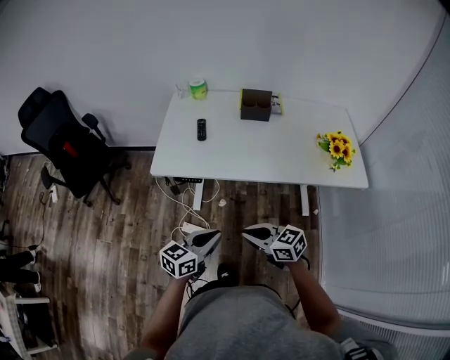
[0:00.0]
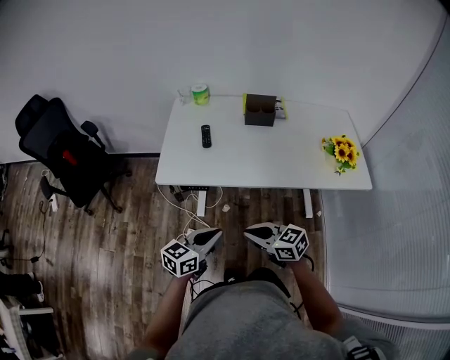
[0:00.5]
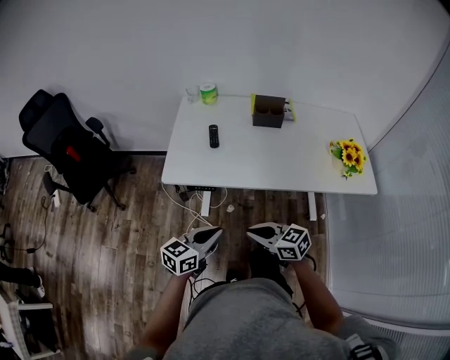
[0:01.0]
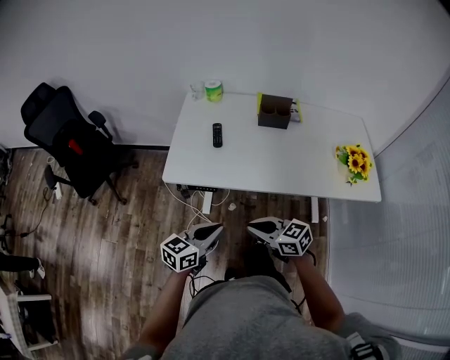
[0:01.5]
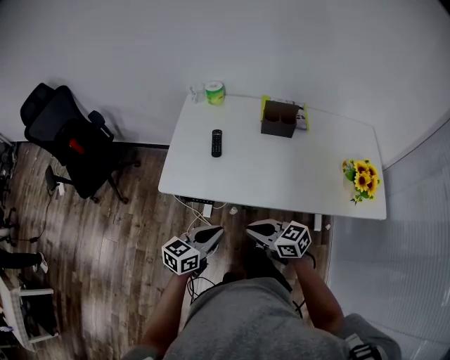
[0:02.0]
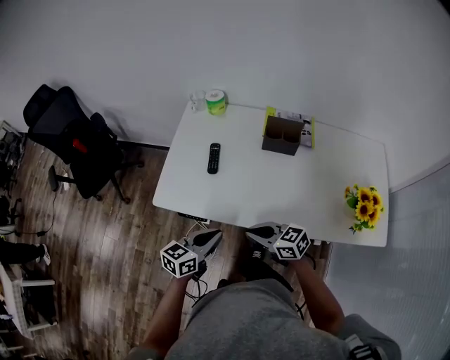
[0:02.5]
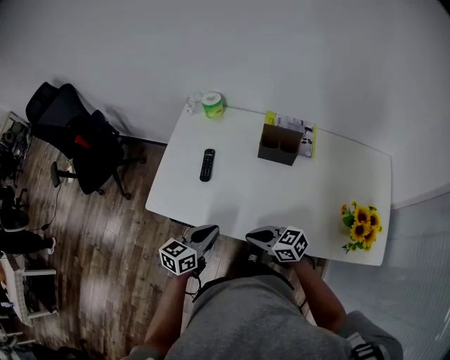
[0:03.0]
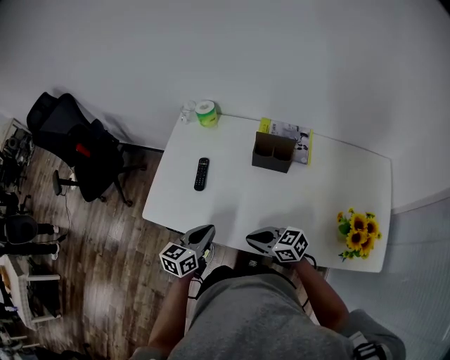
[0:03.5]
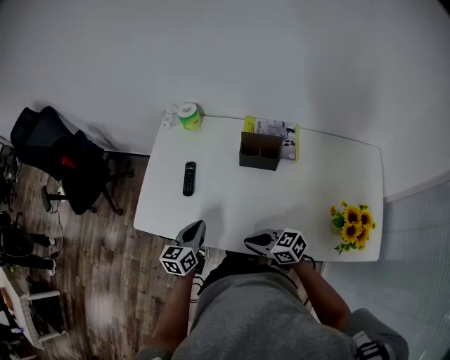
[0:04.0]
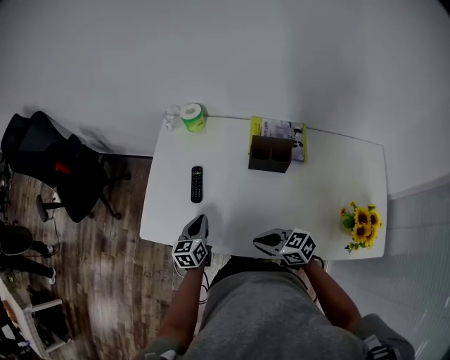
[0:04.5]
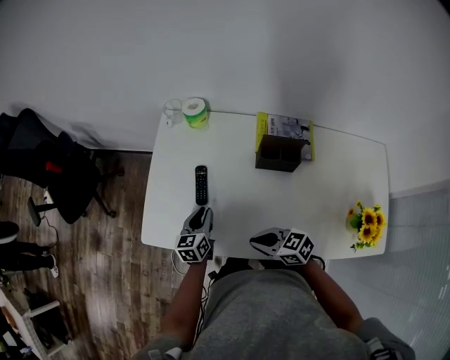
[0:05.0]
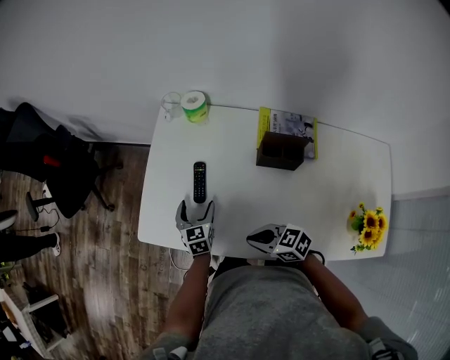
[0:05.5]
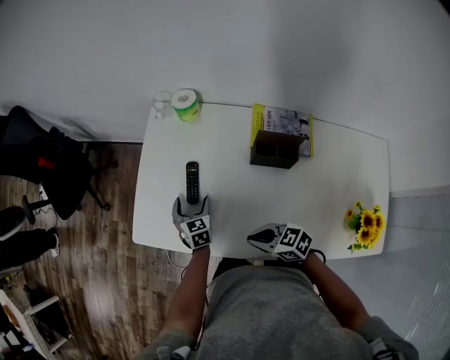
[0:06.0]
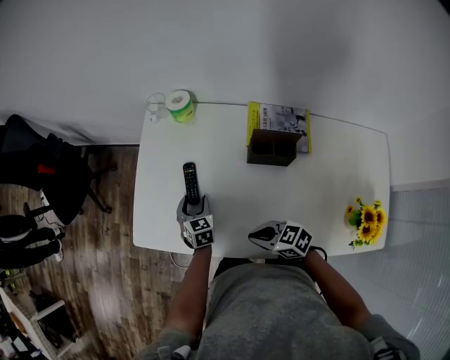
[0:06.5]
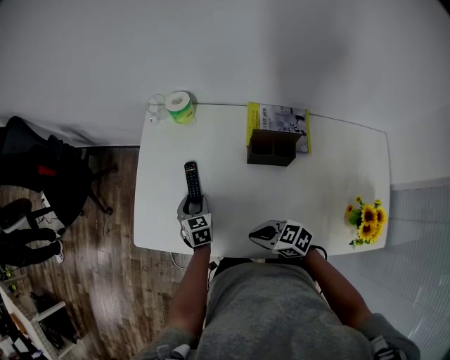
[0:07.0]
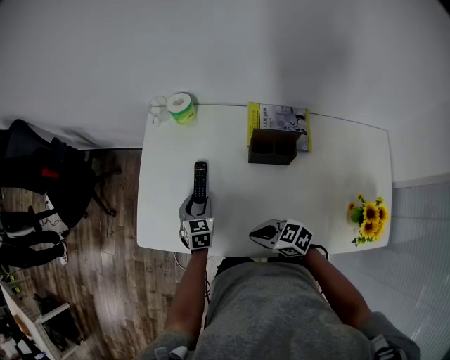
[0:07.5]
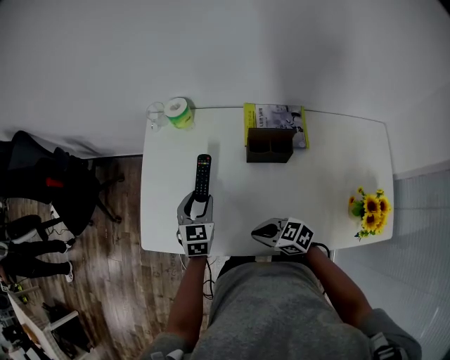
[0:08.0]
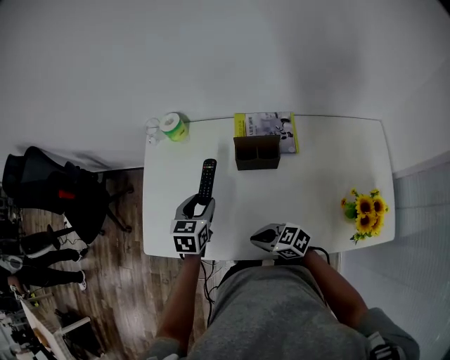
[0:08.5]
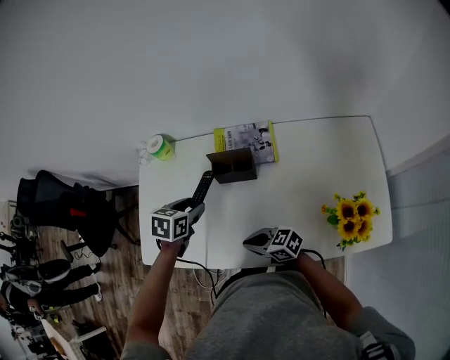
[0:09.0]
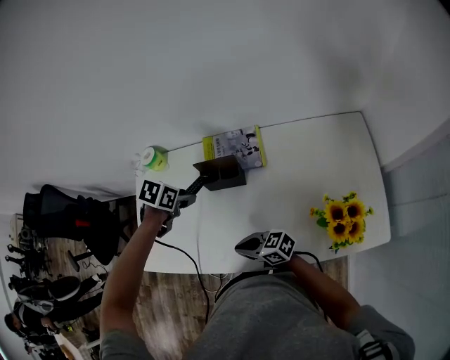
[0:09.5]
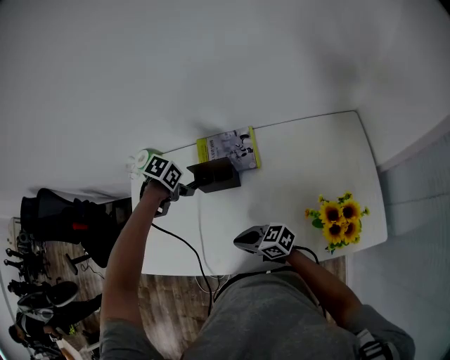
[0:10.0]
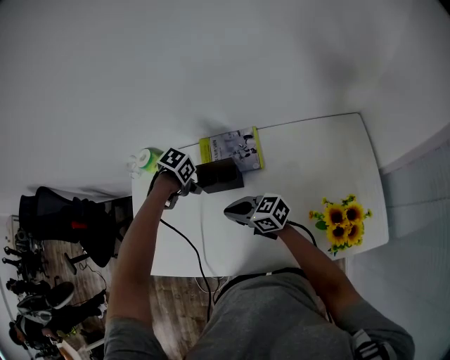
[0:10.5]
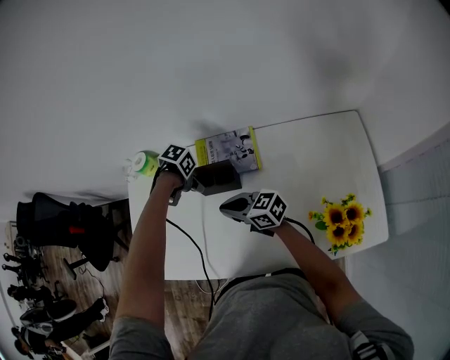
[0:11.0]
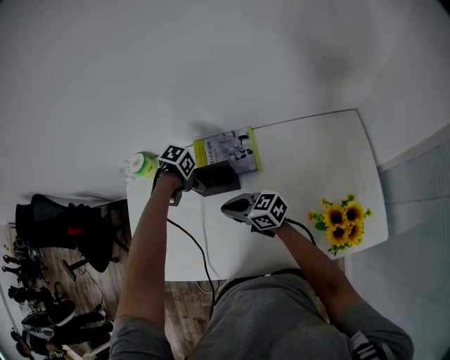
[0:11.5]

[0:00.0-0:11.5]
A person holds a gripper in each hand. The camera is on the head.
0:00.0 to 0:02.0: Both grippers travel together forward, roughly 15 cm.
0:02.0 to 0:04.0: The left gripper goes some 25 cm forward and to the right, and turns by approximately 30 degrees. The right gripper is displaced to the right and forward by some 20 cm.
0:04.0 to 0:06.0: The left gripper shifts approximately 20 cm forward and downward, turns by some 30 degrees, and opens its fingers. The right gripper shifts approximately 5 cm forward.
0:06.0 to 0:07.5: The left gripper closes its fingers.
0:07.5 to 0:09.5: The left gripper changes place by approximately 25 cm, and swivels approximately 40 degrees, while the right gripper ends up some 10 cm from where it was, and rotates about 20 degrees.
0:09.5 to 0:11.5: The right gripper changes place by roughly 15 cm, while the left gripper travels downward by some 10 cm, and turns by about 30 degrees.

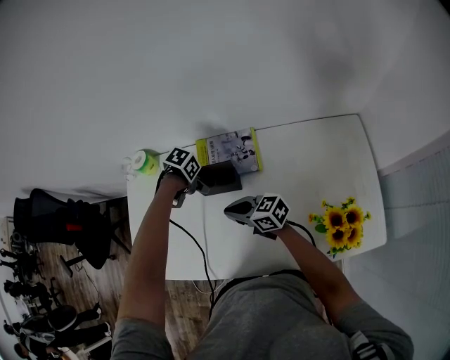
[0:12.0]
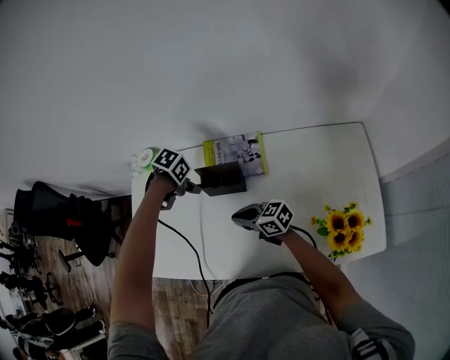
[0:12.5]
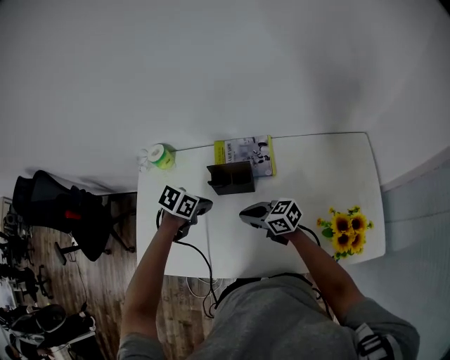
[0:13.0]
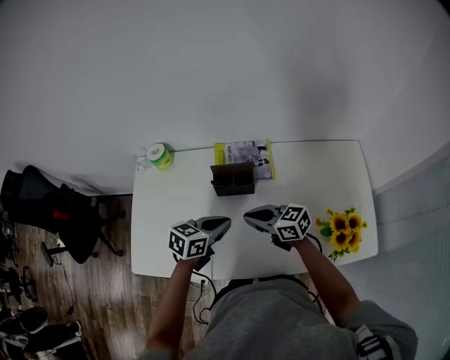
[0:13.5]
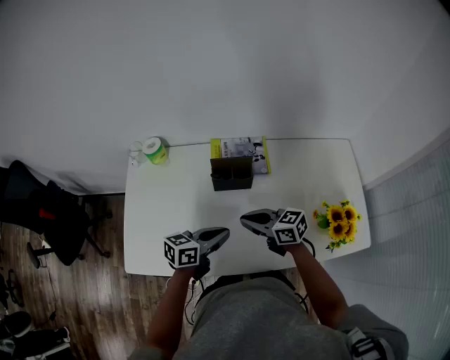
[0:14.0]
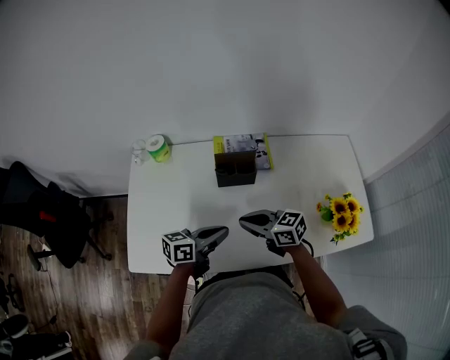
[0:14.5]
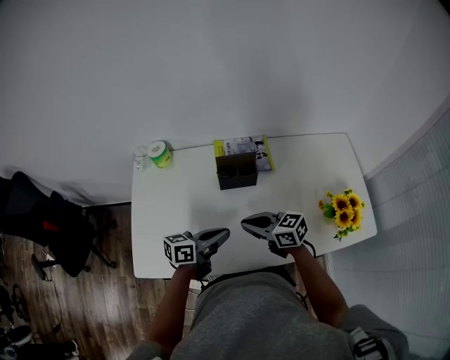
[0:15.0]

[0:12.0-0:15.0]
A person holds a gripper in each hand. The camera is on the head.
0:12.0 to 0:13.5: The left gripper shifts by some 20 cm, angles its fingers upward, by roughly 40 degrees, and closes up. Meanwhile the right gripper moves some 5 cm.
0:13.5 to 0:15.0: The left gripper shifts by approximately 10 cm, and changes its angle by approximately 30 degrees, while the right gripper shifts by approximately 10 cm.

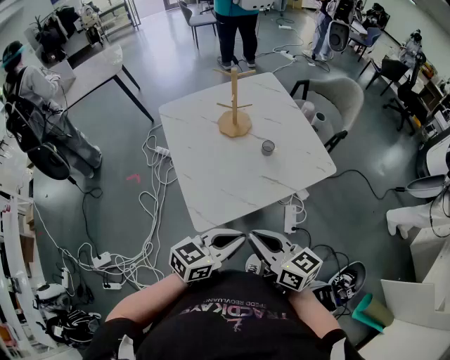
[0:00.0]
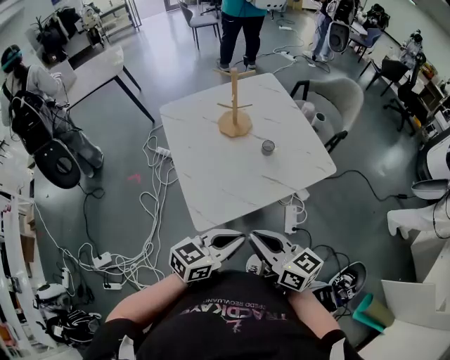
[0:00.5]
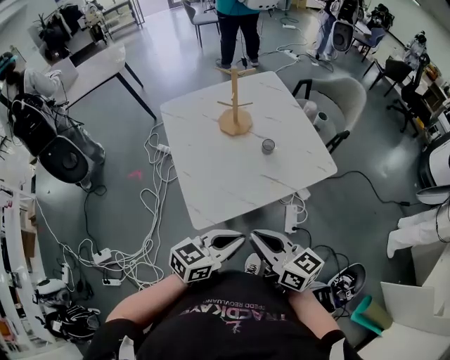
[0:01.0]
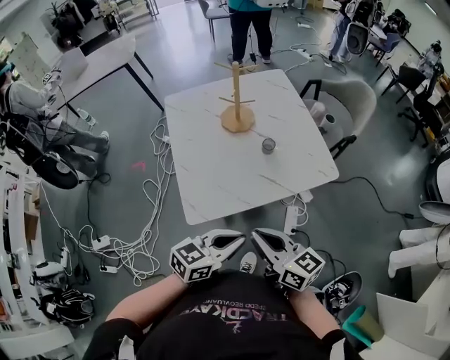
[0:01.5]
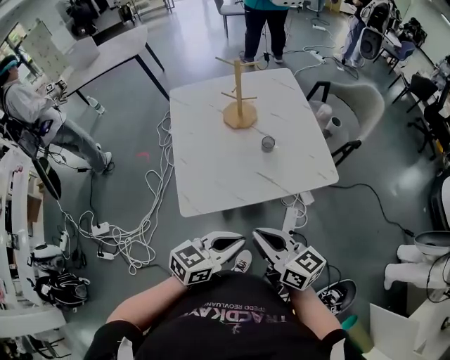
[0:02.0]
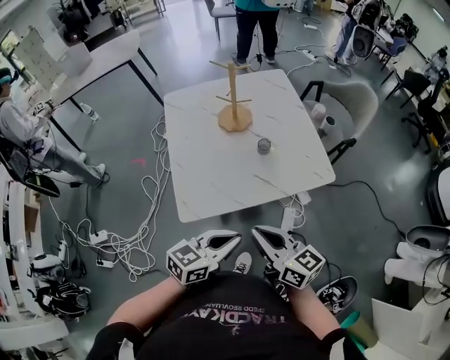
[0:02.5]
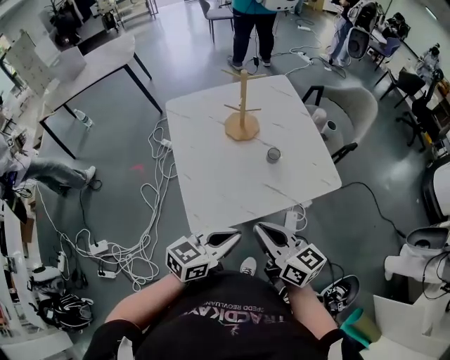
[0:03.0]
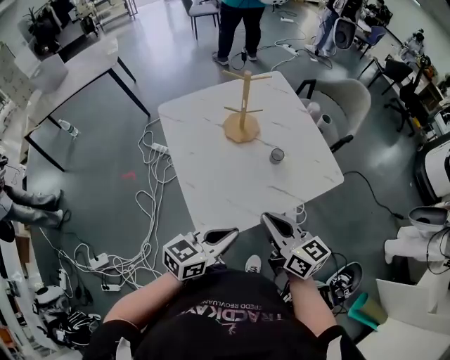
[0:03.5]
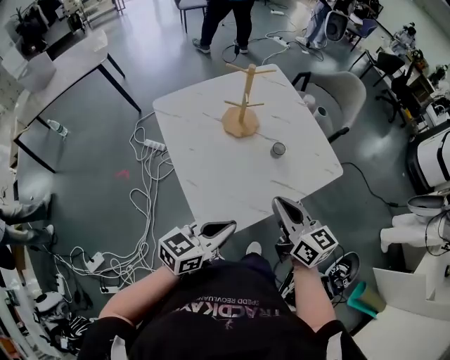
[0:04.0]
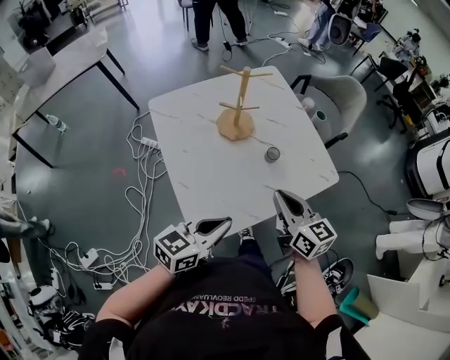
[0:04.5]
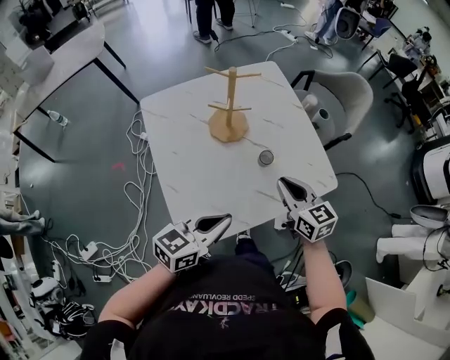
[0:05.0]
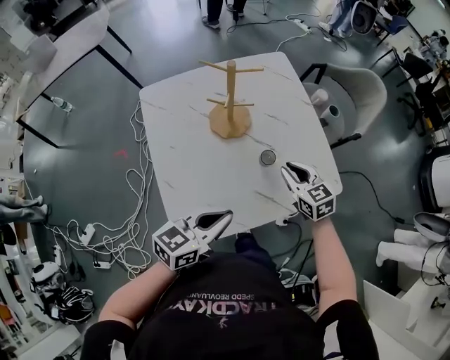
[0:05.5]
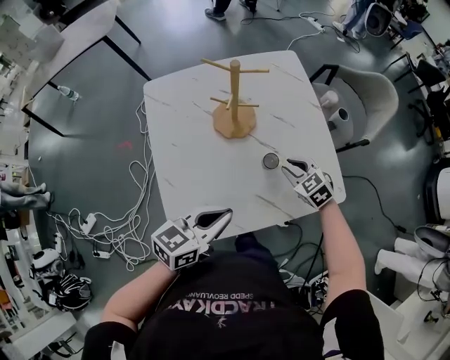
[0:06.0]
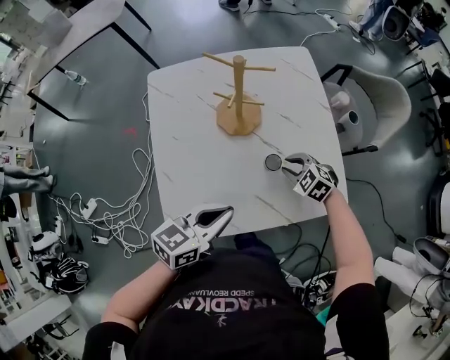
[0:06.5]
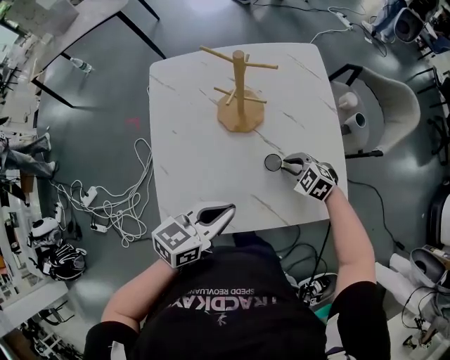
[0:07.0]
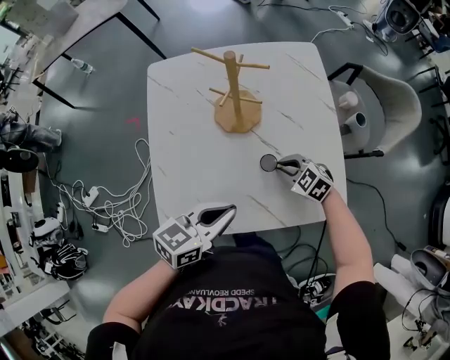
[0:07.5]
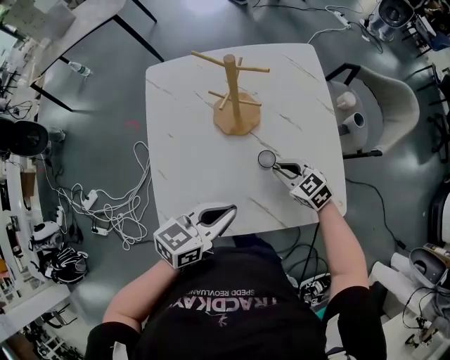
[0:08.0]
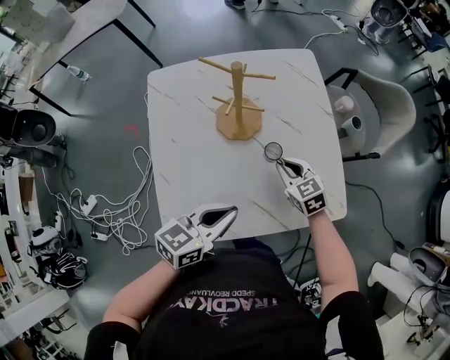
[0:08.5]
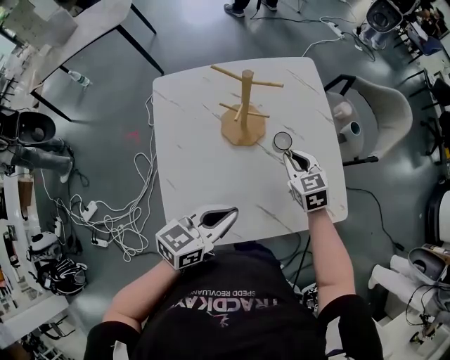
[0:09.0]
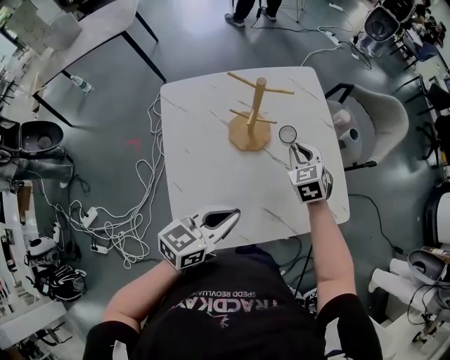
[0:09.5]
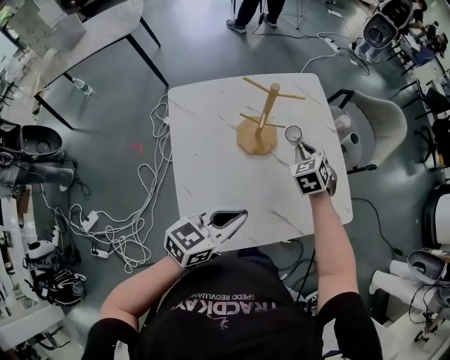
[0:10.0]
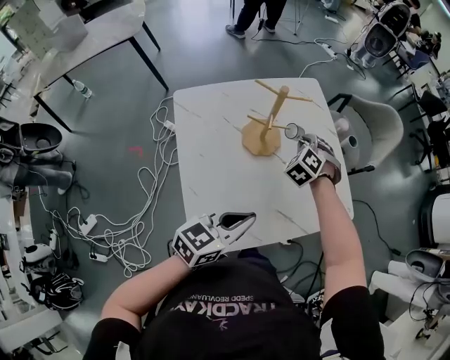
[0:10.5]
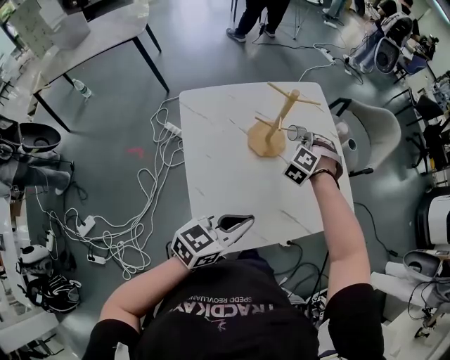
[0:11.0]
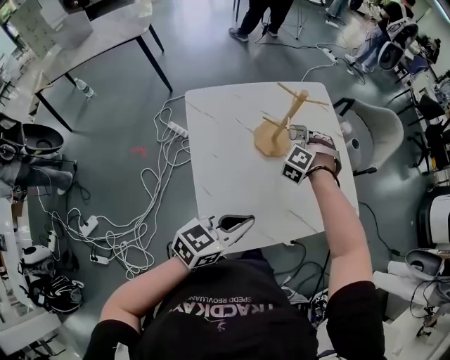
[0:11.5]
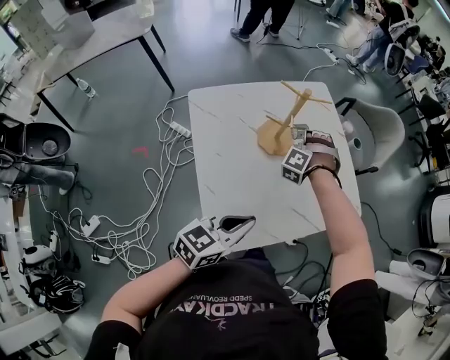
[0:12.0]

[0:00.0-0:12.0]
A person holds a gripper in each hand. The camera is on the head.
0:00.0 to 0:02.0: Both grippers move to the right, approximately 10 cm.
0:02.0 to 0:04.0: The right gripper is displaced forward and to the left by some 15 cm, and swivels approximately 30 degrees. The left gripper heads to the left and forward, covering roughly 20 cm.
0:04.0 to 0:06.0: The right gripper shifts about 30 cm forward, downward and to the right, and angles its fingers downward, by about 40 degrees, while the left gripper heads forward and to the right, covering about 15 cm.
0:06.0 to 0:08.0: The left gripper ends up approximately 5 cm from where it was.
0:08.0 to 0:10.0: The right gripper shifts by roughly 15 cm, and changes its angle by approximately 50 degrees. Meanwhile the left gripper ends up about 10 cm from where it was.
0:10.0 to 0:12.0: The right gripper heads to the left, covering approximately 5 cm, and twists roughly 60 degrees counterclockwise, seen from behind, while the left gripper moves backward, some 10 cm.
